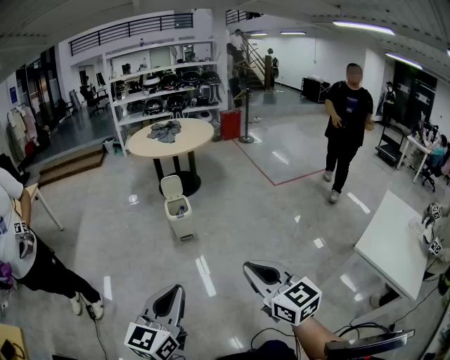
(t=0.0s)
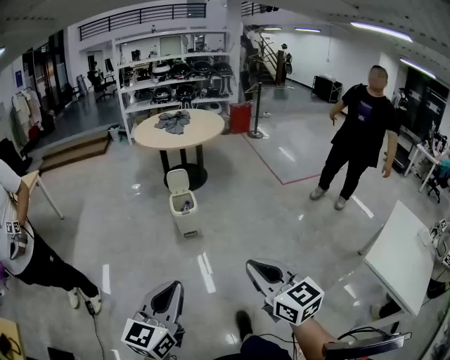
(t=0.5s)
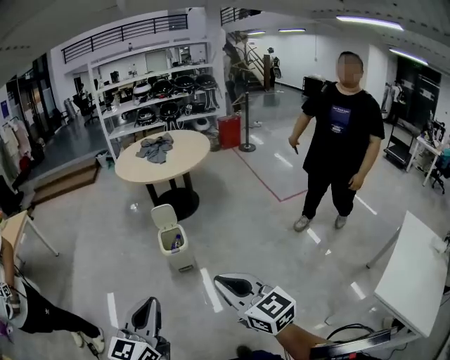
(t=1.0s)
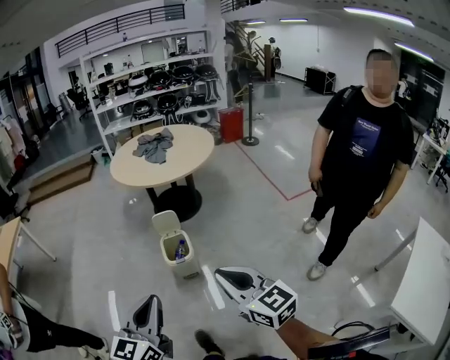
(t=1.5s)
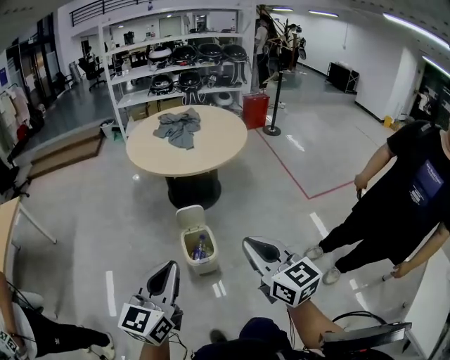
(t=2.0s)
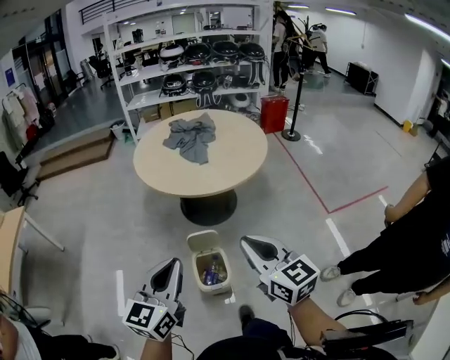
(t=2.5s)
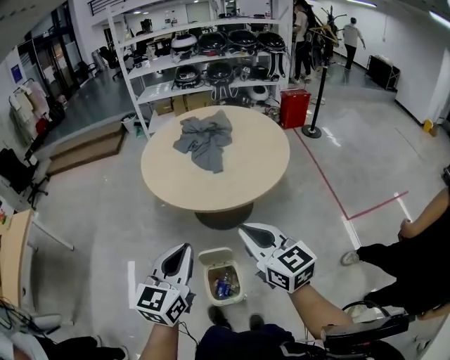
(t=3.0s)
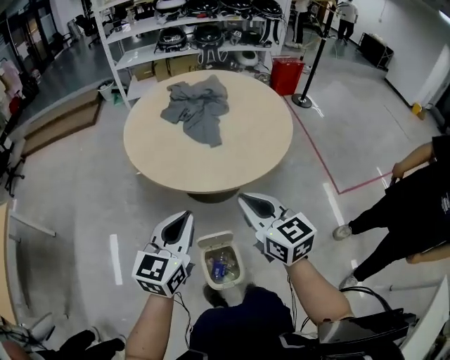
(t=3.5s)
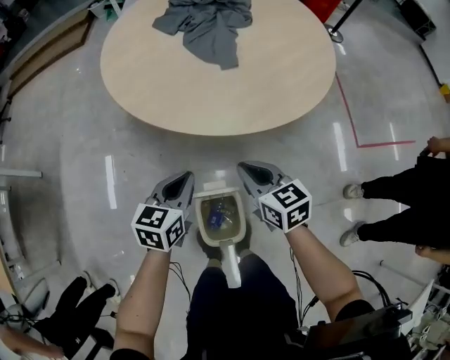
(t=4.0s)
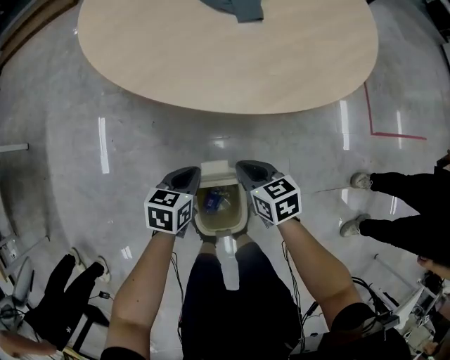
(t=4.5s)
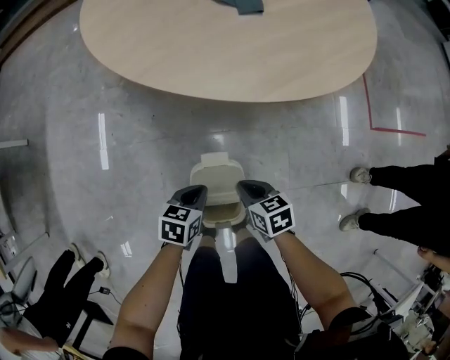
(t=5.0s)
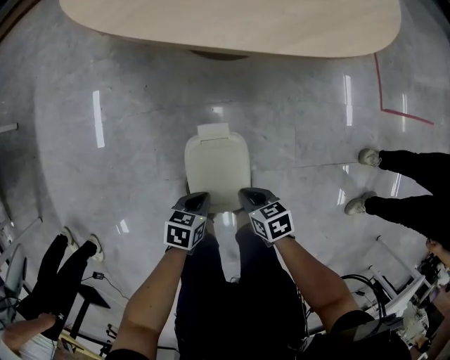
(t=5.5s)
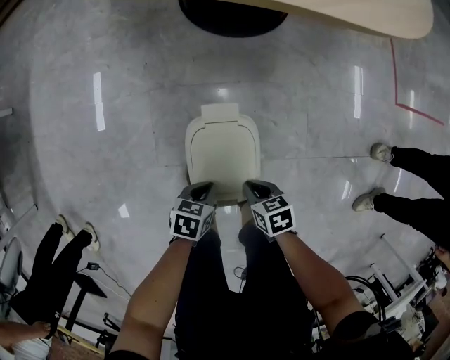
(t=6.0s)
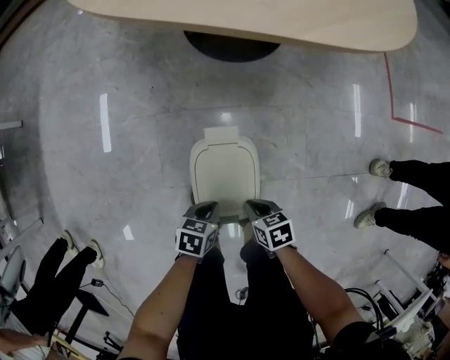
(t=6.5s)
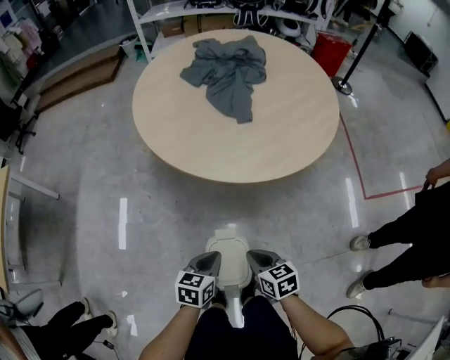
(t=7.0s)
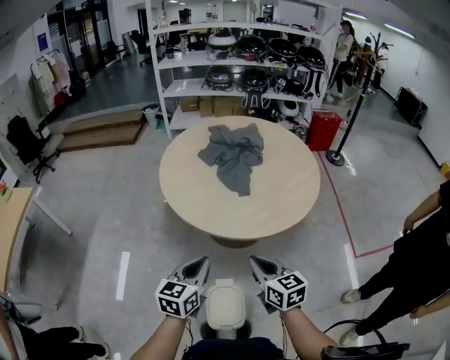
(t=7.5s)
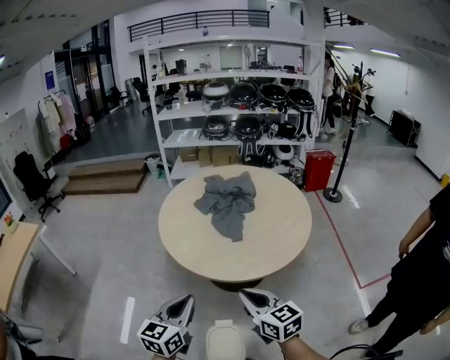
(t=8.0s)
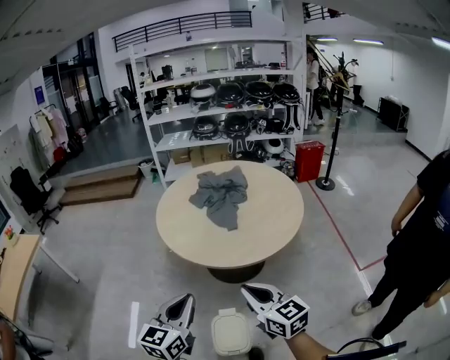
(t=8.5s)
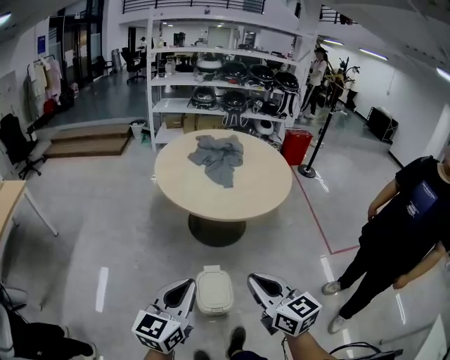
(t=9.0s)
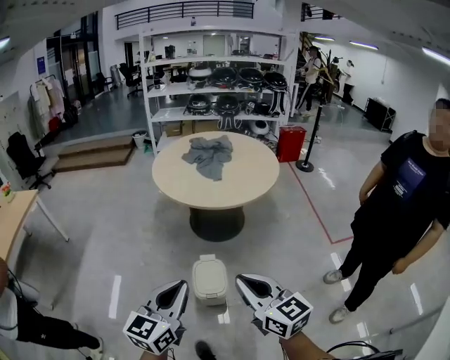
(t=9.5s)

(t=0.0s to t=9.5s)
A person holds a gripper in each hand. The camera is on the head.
t=0.0s - t=2.0s: The two grippers travel together, forward, roughly 60 cm.
t=2.0s - t=4.0s: The two grippers travel together, forward, roughly 50 cm. Both grippers travel together downward, roughly 35 cm. The left gripper changes its angle by about 30 degrees. Meanwhile the right gripper swivels roughly 30 degrees.
t=4.0s - t=5.5s: Both grippers move downward, about 30 cm. The right gripper turns by some 40 degrees; the left gripper changes its angle by roughly 40 degrees.
t=5.5s - t=7.5s: Both grippers move upward, approximately 50 cm. The left gripper tilts its fingers about 40 degrees upward. The right gripper angles its fingers upward, by roughly 40 degrees.
t=7.5s - t=9.5s: Both grippers move backward, approximately 40 cm.

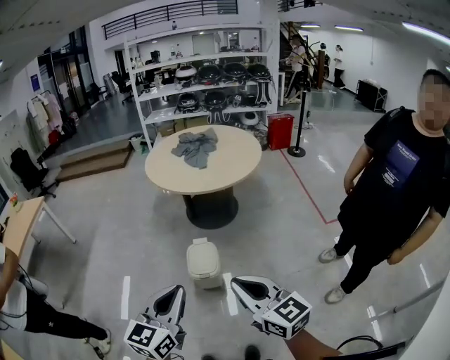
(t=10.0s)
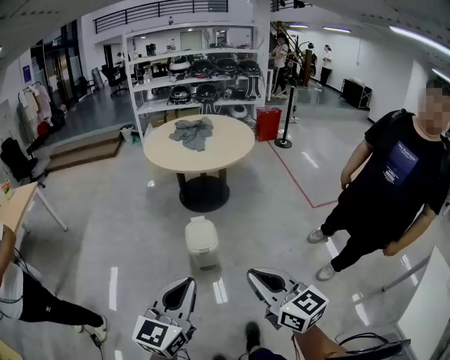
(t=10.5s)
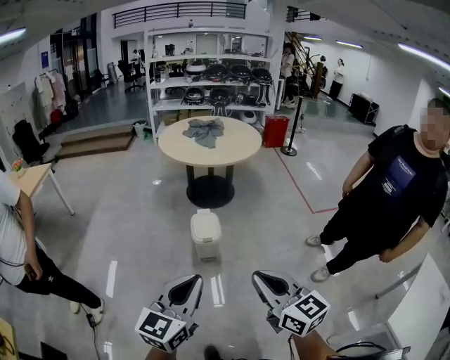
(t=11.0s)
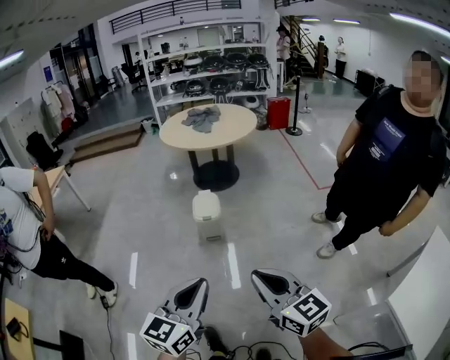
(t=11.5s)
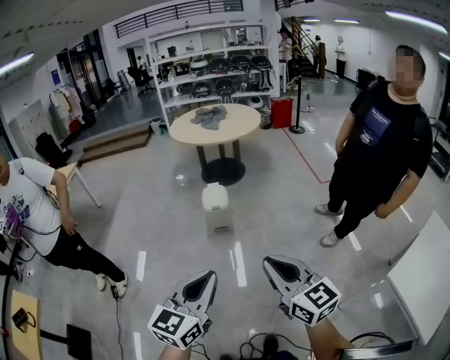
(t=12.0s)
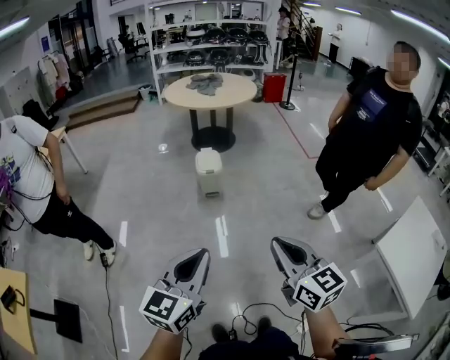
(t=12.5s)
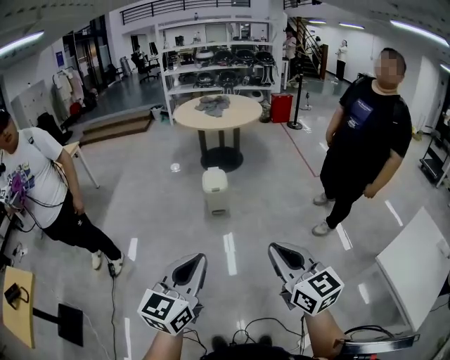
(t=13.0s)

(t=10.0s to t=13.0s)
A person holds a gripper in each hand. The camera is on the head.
t=10.0s - t=11.5s: The two grippers go some 40 cm backward.
t=11.5s - t=13.0s: The grippers both shift backward by some 20 cm.

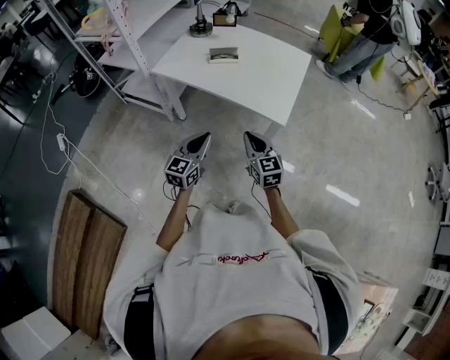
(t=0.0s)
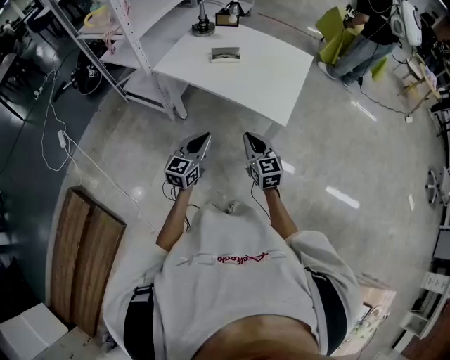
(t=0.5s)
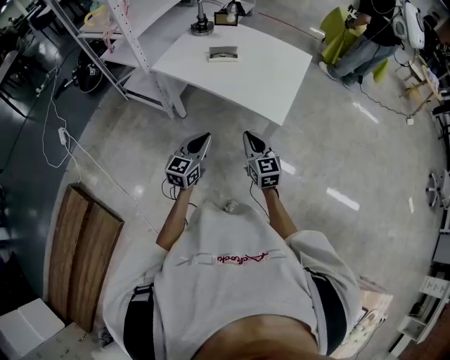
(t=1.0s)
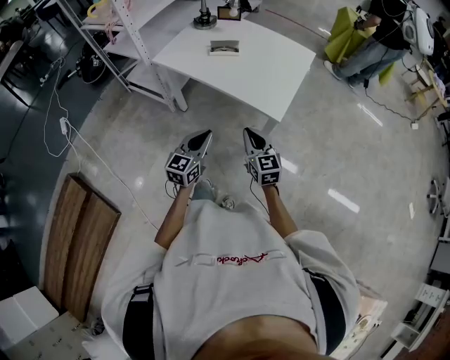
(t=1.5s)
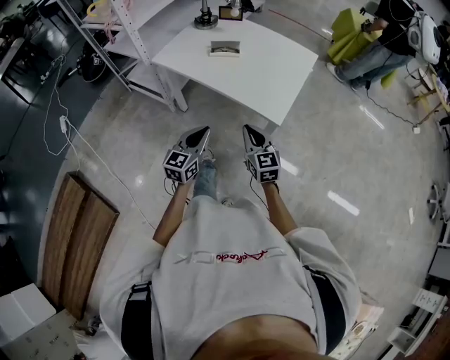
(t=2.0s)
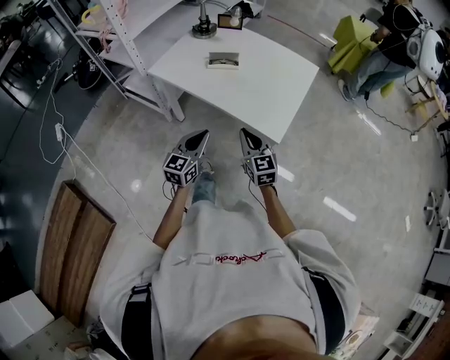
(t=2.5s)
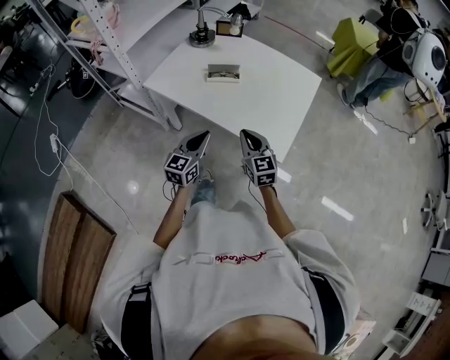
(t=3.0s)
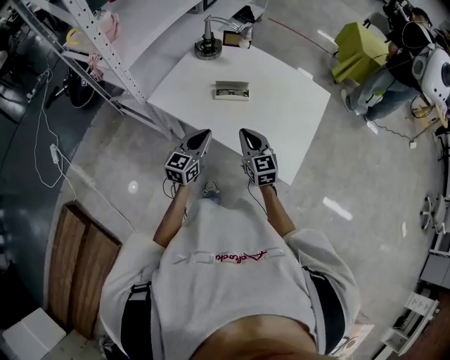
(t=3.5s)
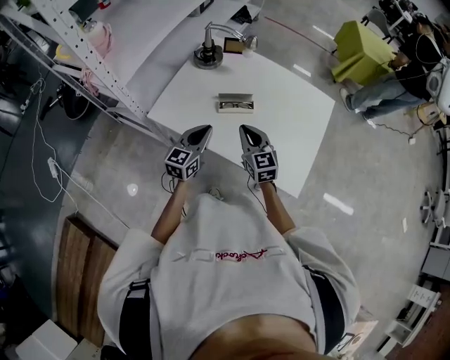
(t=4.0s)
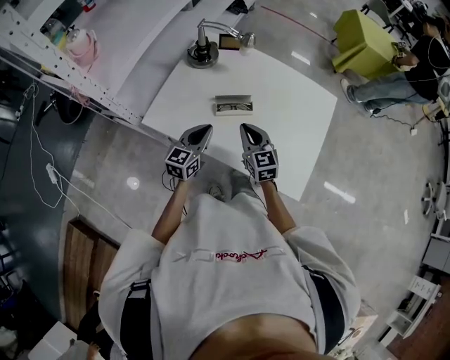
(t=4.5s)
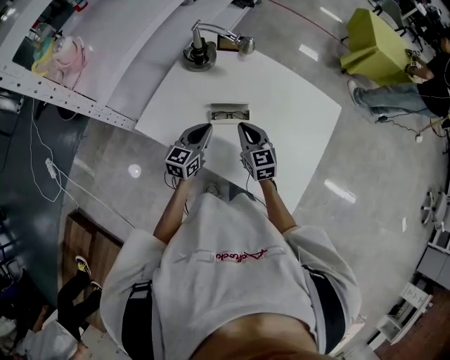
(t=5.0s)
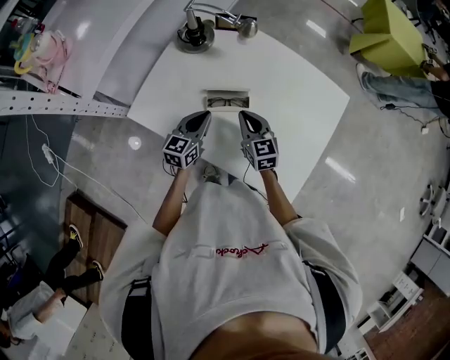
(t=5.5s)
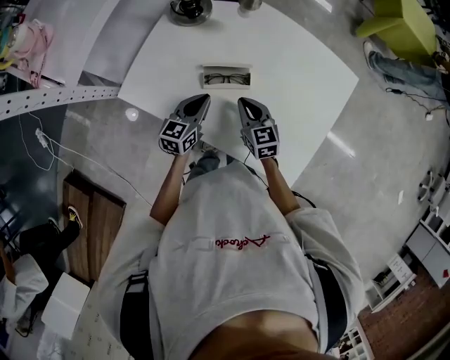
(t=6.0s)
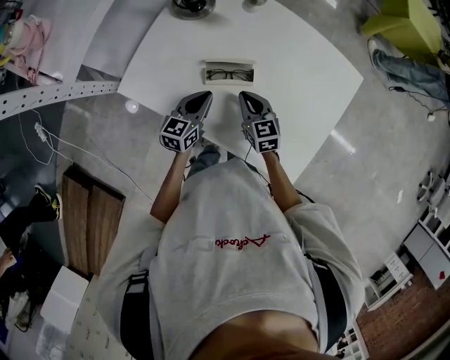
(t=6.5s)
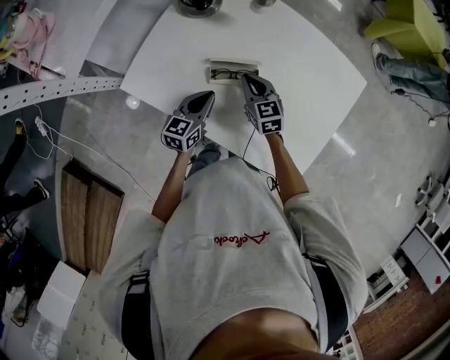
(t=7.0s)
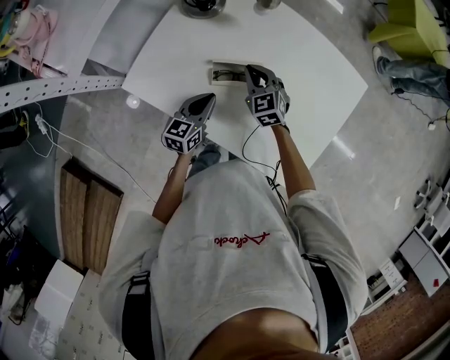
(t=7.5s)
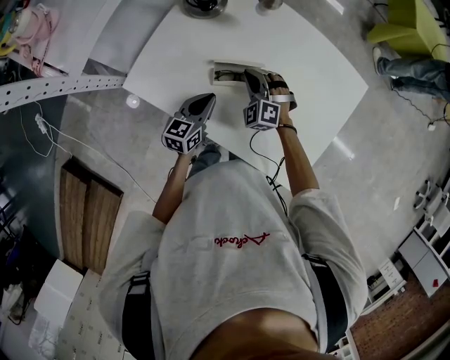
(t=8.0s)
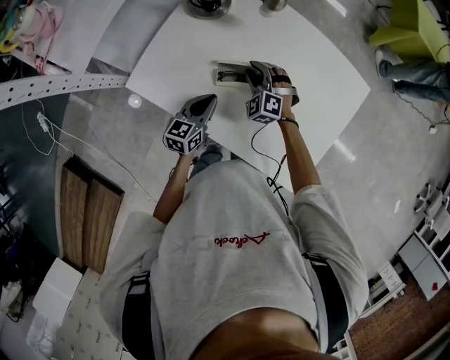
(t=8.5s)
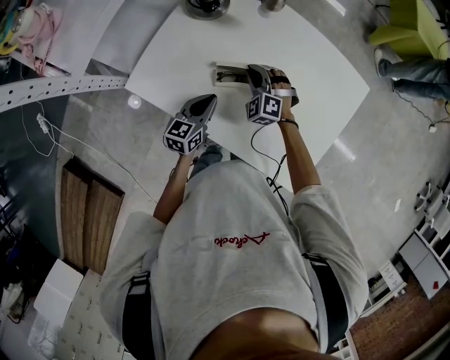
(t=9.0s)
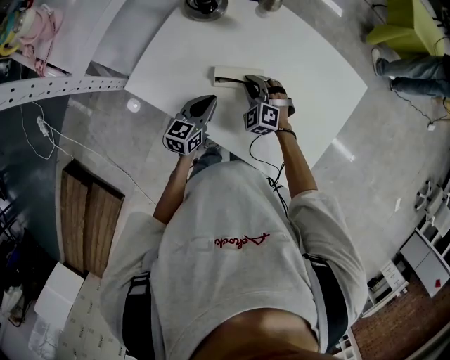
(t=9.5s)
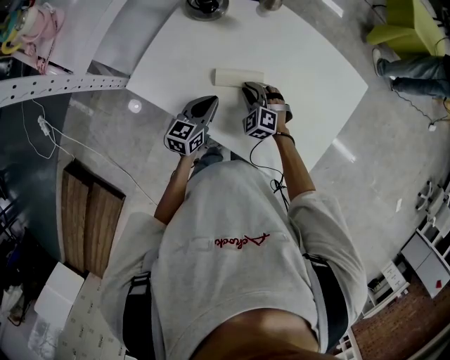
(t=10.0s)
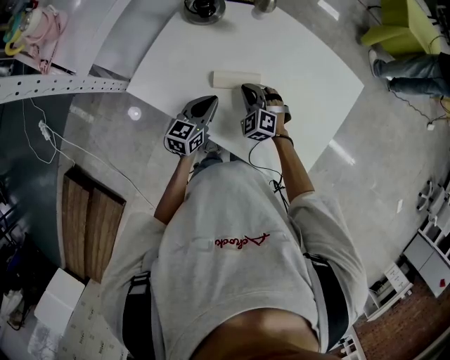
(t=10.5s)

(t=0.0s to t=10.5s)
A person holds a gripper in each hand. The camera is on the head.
t=0.0s - t=2.0s: There are only small adjustments of the grippers.
t=2.0s - t=4.0s: The grippers both shift forward by some 35 cm.
t=4.0s - t=6.5s: Both grippers move downward and forward, about 15 cm. The right gripper rotates some 20 degrees.
t=6.5s - t=8.5s: The right gripper goes roughly 10 cm forward, twists some 60 degrees counterclockwise, seen from behind, and opens.
t=8.5s - t=10.5s: The right gripper travels backward by some 5 cm, and closes.

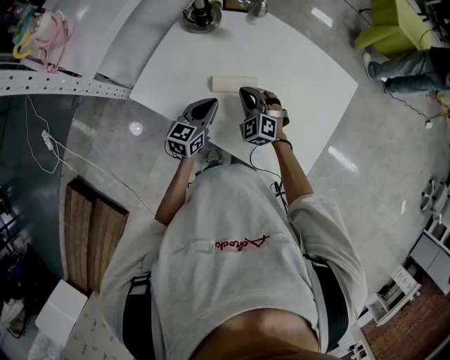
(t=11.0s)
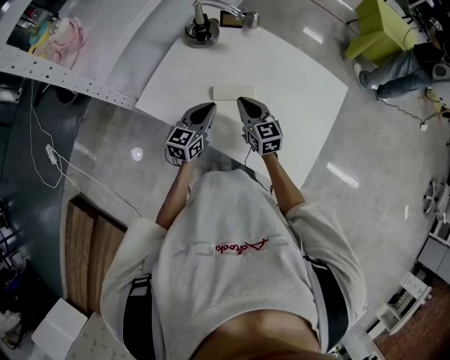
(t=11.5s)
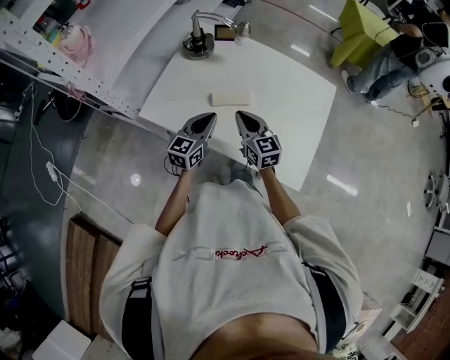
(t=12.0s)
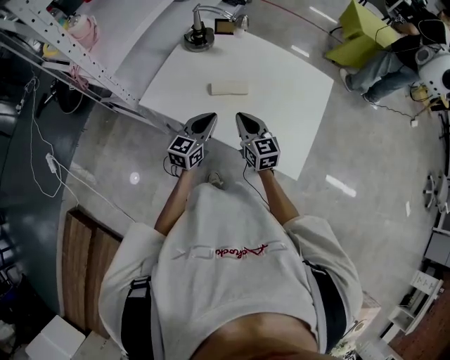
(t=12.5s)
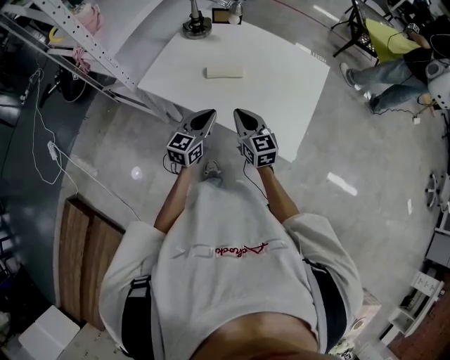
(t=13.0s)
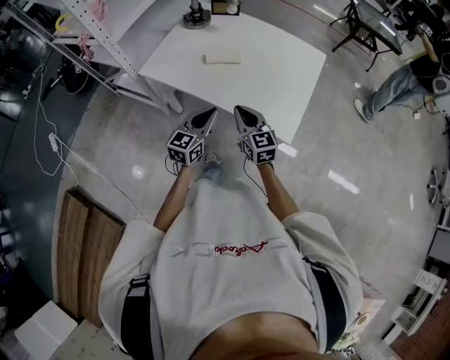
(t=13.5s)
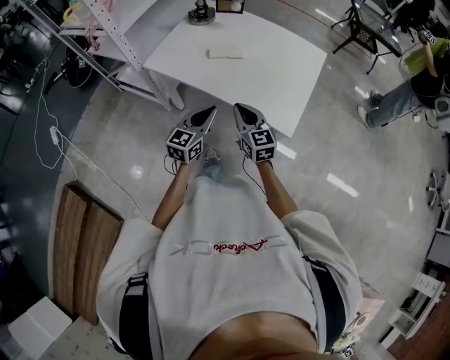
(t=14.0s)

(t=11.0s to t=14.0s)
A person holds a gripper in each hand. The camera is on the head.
t=11.0s - t=12.5s: Both grippers move backward and upward, some 15 cm. The right gripper rolls clockwise, seen from behind, by approximately 50 degrees.
t=12.5s - t=14.0s: The two grippers go some 15 cm backward.
